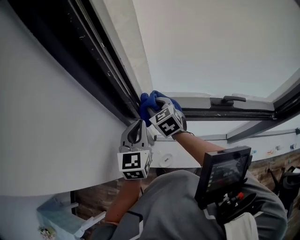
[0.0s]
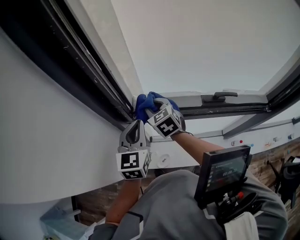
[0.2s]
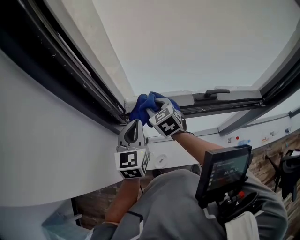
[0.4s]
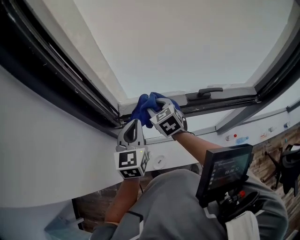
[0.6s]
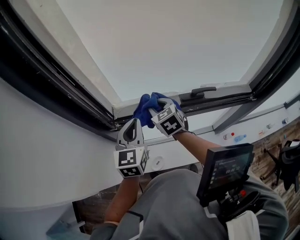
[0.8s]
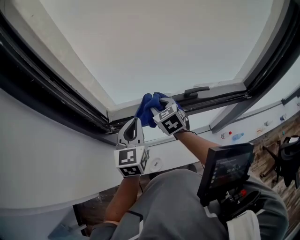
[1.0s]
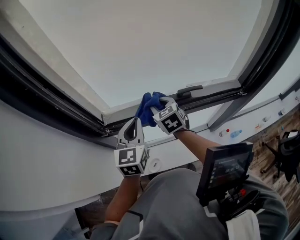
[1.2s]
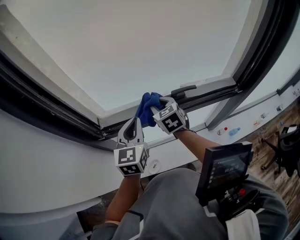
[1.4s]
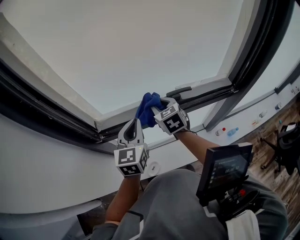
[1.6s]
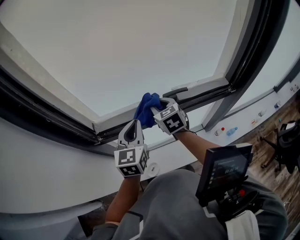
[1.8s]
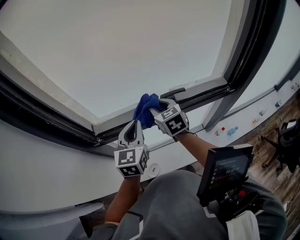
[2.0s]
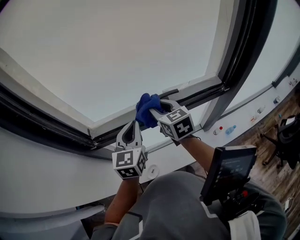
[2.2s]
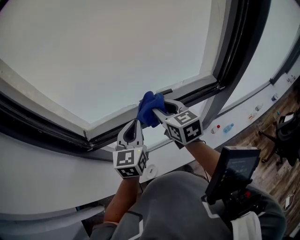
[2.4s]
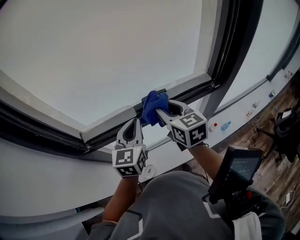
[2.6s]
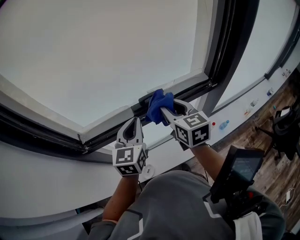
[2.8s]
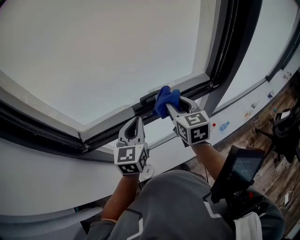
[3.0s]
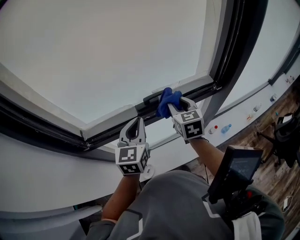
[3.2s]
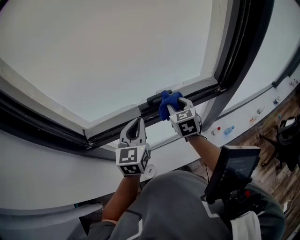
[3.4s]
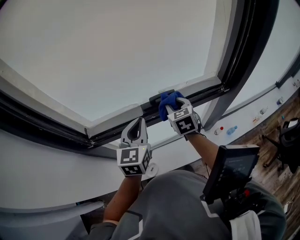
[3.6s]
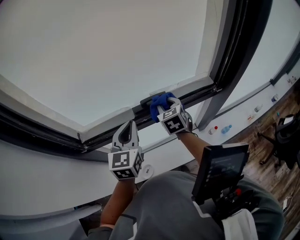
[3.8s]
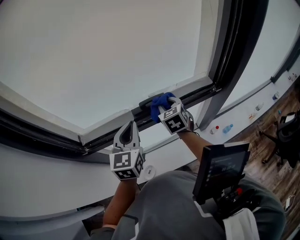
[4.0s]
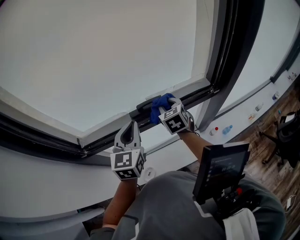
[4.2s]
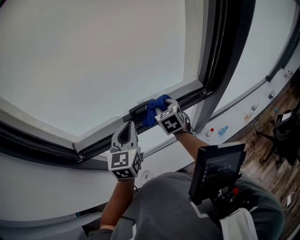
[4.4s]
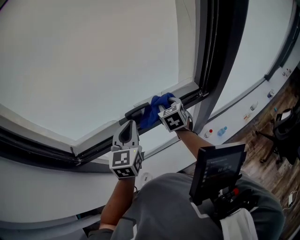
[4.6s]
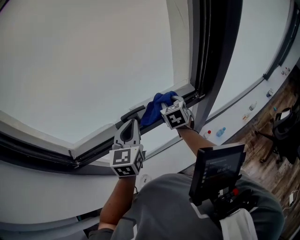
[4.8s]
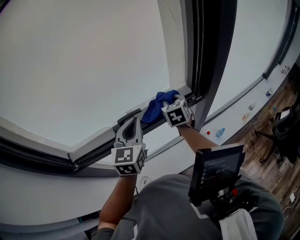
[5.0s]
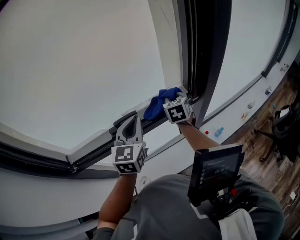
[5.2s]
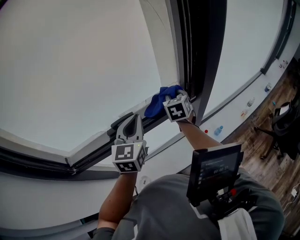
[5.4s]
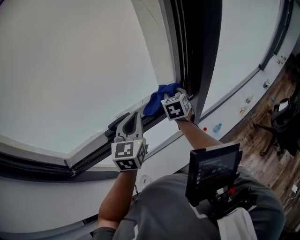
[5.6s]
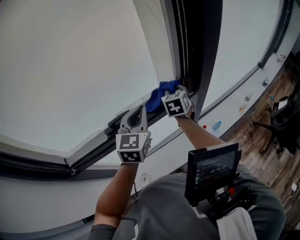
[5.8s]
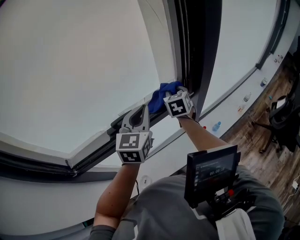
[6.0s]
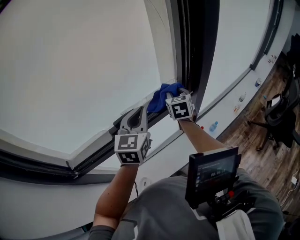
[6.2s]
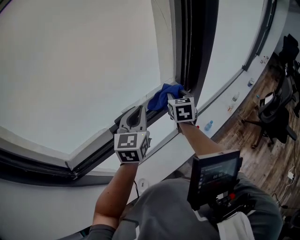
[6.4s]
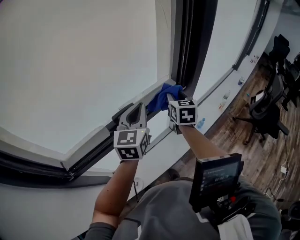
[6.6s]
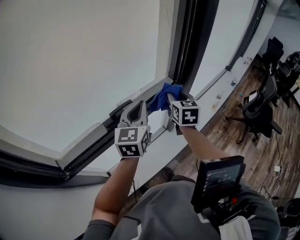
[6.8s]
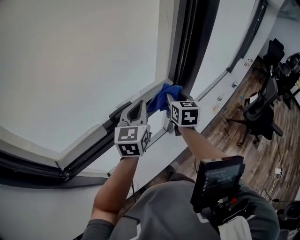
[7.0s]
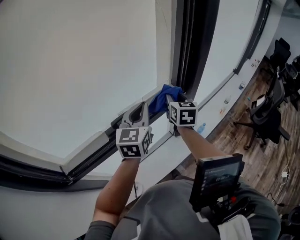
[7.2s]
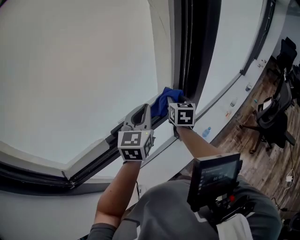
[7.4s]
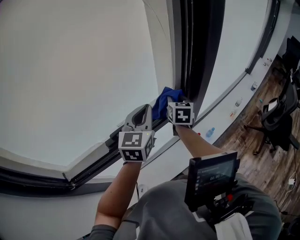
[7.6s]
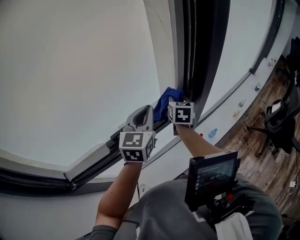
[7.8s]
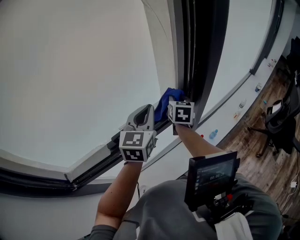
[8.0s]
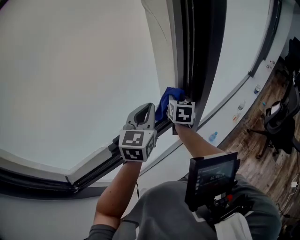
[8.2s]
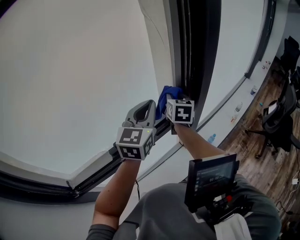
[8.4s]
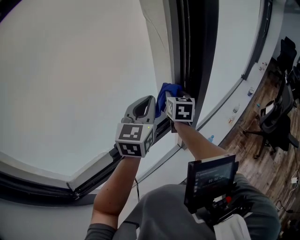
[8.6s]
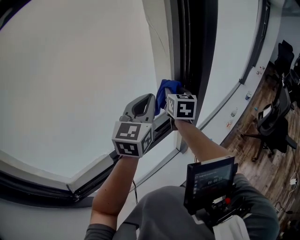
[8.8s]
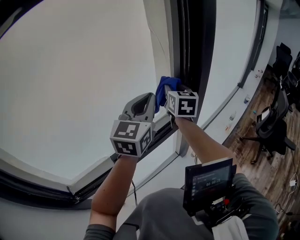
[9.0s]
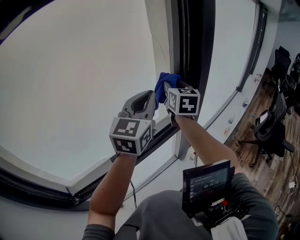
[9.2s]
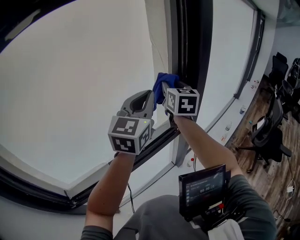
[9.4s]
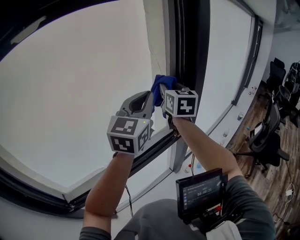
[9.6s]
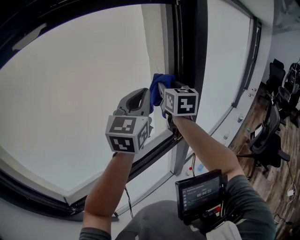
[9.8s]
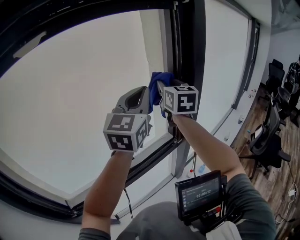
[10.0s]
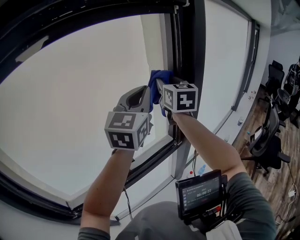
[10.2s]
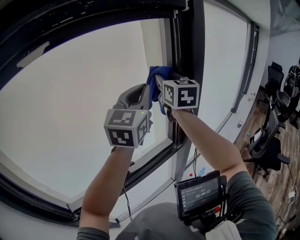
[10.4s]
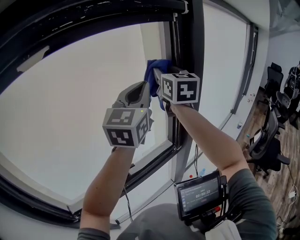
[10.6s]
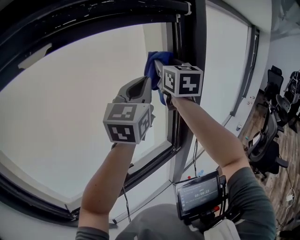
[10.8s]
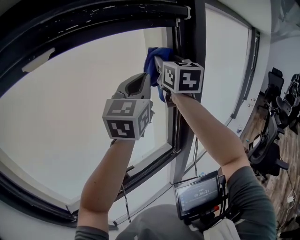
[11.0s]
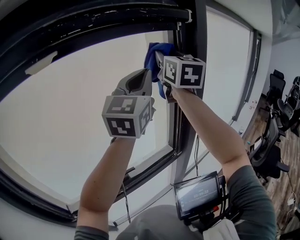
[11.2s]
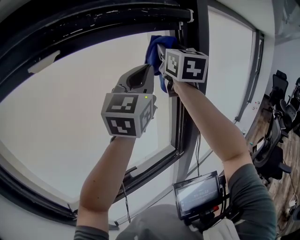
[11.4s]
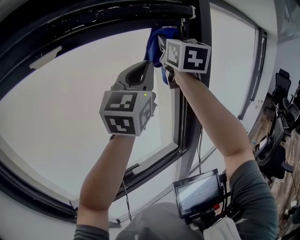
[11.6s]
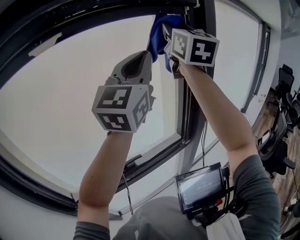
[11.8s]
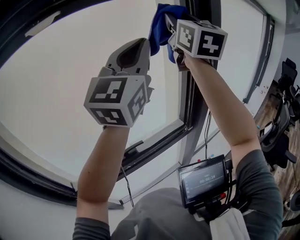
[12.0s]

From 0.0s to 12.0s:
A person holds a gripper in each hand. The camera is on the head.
From 0.0s to 1.6s: Both grippers travel together to the right, approximately 25 cm. The right gripper swivels about 20 degrees.
From 1.6s to 3.0s: The right gripper heads to the right, covering roughly 20 cm, and rotates approximately 20 degrees; the left gripper is displaced to the right by about 10 cm.
From 3.0s to 4.4s: The right gripper goes about 15 cm downward and forward.
From 4.4s to 6.0s: Both grippers move to the right and forward, some 20 cm. The right gripper turns by some 20 degrees.
From 6.0s to 7.6s: The right gripper reaches about 10 cm backward, then returns, and turns by some 20 degrees.
From 7.6s to 9.0s: The two grippers go some 15 cm upward.
From 9.0s to 10.4s: Both grippers travel together upward, some 20 cm.
From 10.4s to 12.0s: The left gripper moves upward and backward, some 10 cm, while the right gripper moves upward, approximately 15 cm.

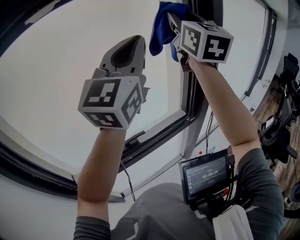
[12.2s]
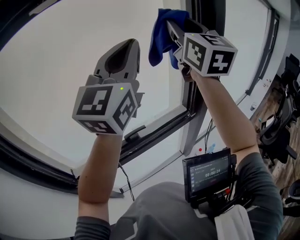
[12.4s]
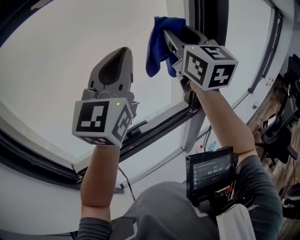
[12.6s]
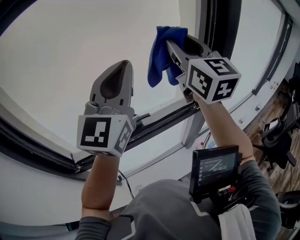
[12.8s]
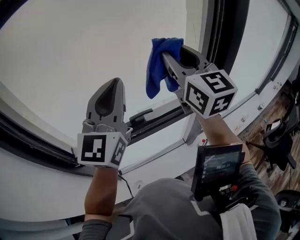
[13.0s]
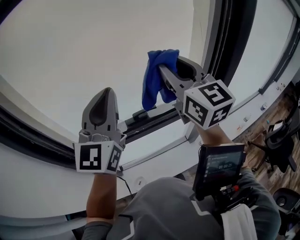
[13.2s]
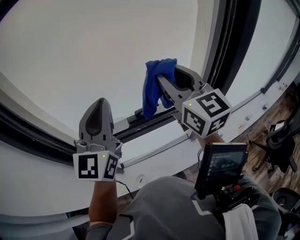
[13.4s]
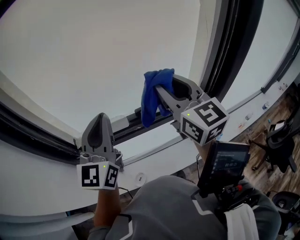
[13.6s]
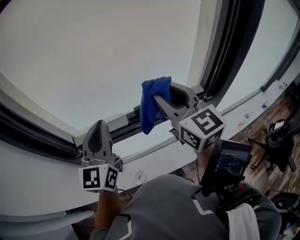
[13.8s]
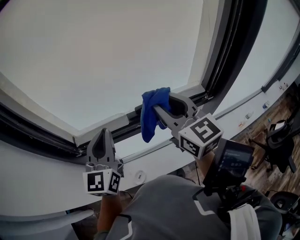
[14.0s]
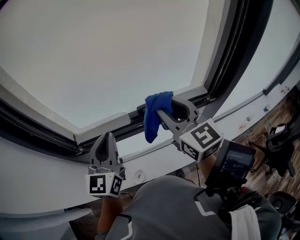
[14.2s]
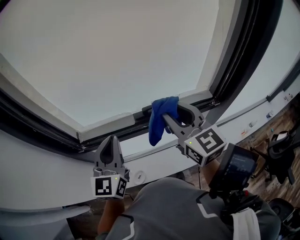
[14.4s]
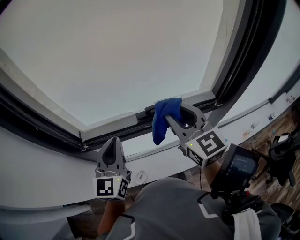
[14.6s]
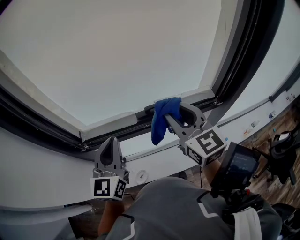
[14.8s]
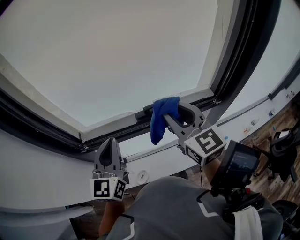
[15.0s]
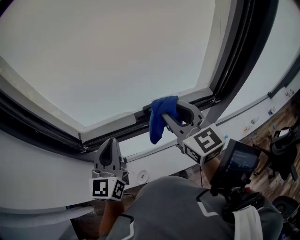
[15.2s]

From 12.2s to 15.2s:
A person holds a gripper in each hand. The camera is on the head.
From 12.2s to 13.8s: The grippers both shift downward by approximately 30 cm. The right gripper changes its angle by about 40 degrees. Meanwhile the left gripper swivels roughly 40 degrees.
From 13.8s to 15.2s: Both grippers move downward, about 5 cm.

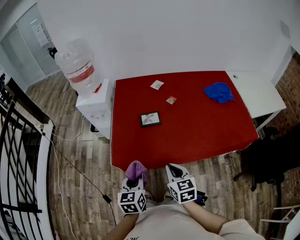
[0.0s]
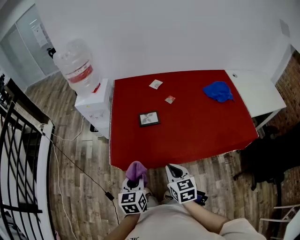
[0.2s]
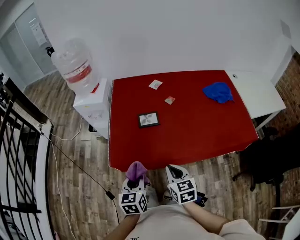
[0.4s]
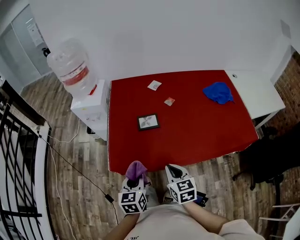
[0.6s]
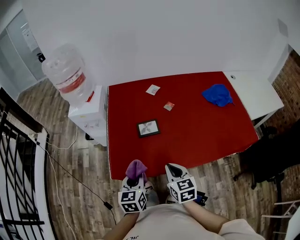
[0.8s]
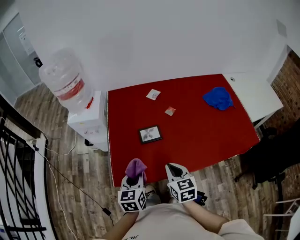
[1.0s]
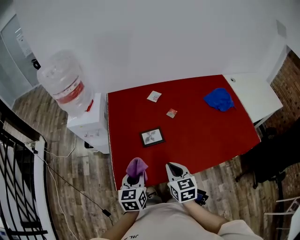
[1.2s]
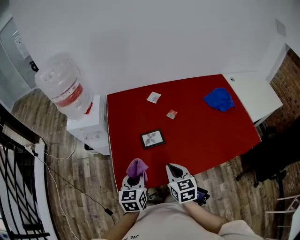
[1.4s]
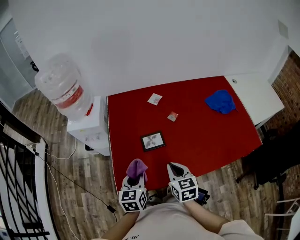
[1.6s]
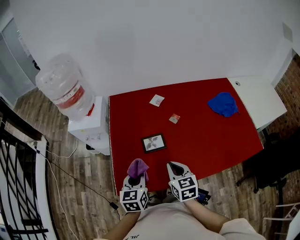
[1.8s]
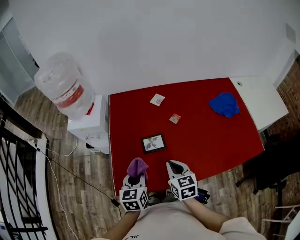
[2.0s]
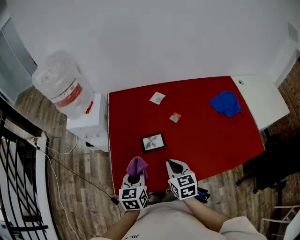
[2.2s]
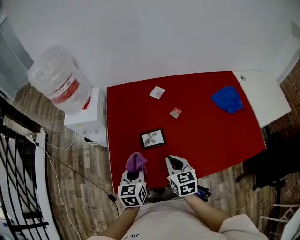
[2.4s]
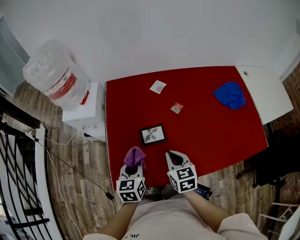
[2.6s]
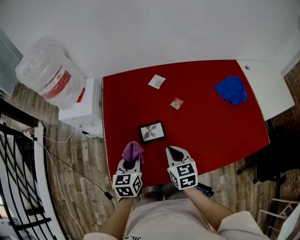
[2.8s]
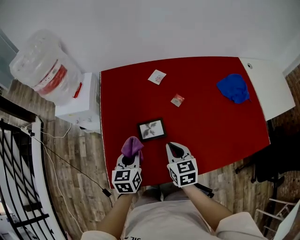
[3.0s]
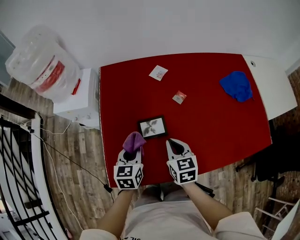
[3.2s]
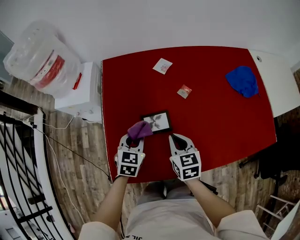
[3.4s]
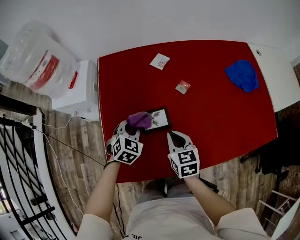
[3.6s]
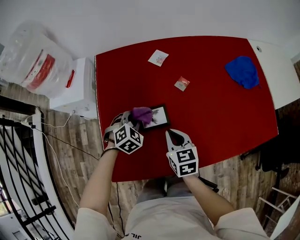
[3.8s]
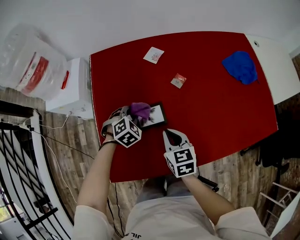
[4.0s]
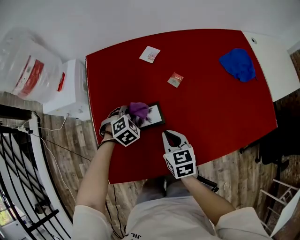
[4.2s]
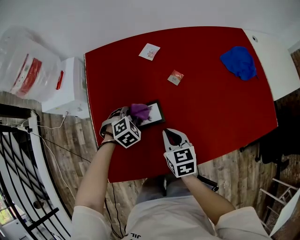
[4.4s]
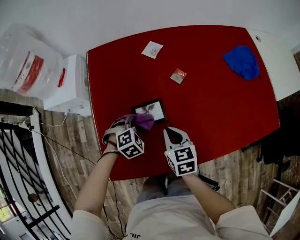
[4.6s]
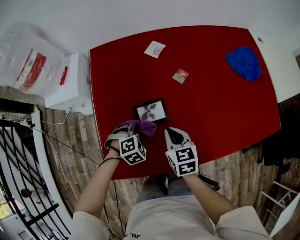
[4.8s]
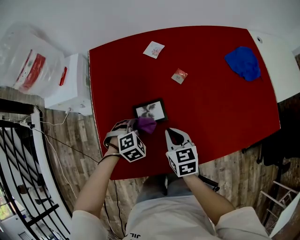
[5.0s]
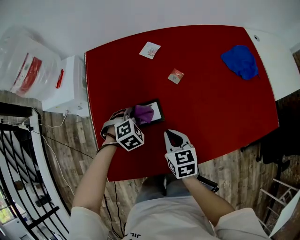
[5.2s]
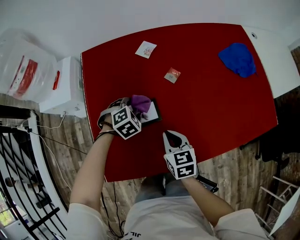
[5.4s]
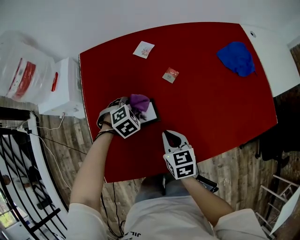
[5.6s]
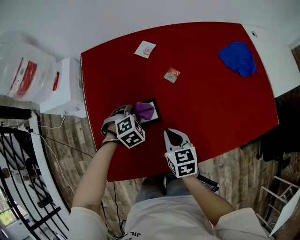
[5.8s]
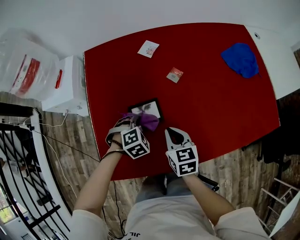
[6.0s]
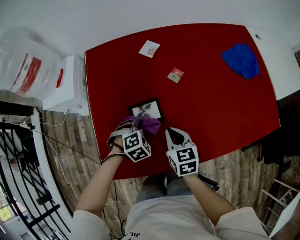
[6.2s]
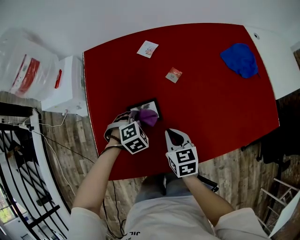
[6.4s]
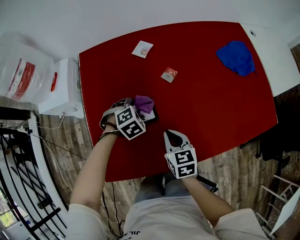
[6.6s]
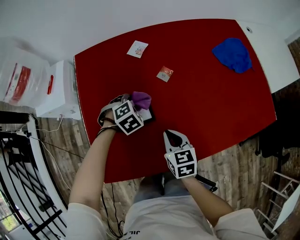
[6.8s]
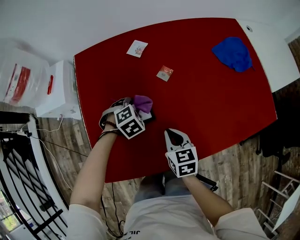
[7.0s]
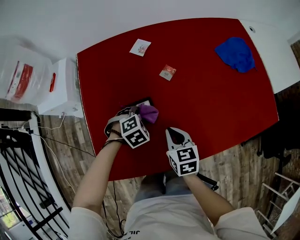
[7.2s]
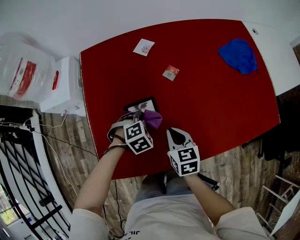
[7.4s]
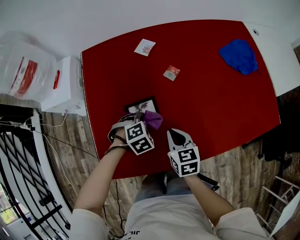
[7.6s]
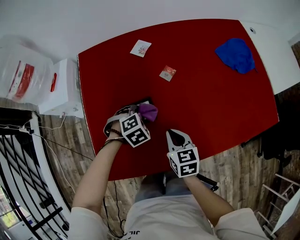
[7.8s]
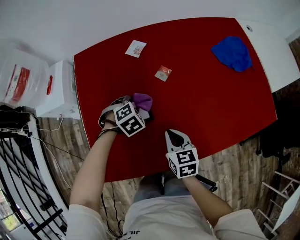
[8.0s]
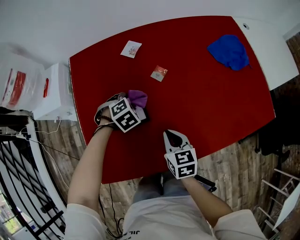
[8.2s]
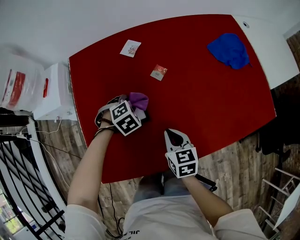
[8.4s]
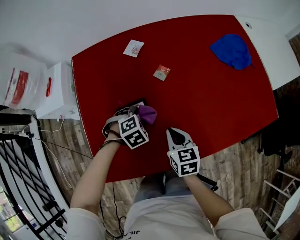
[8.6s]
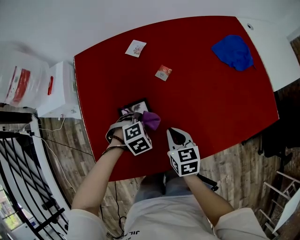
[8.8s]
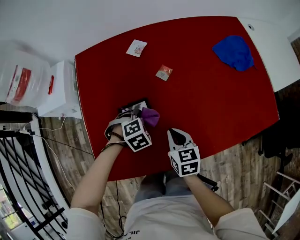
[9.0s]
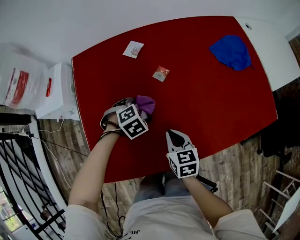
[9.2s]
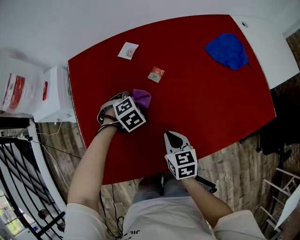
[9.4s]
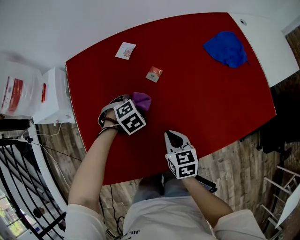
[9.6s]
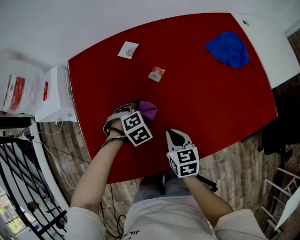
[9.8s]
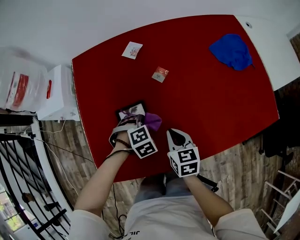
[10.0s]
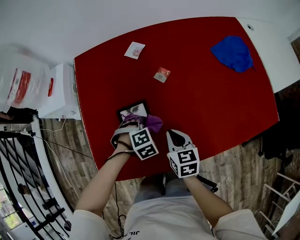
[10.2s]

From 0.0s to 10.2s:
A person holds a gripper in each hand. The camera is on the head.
From 0.0s to 1.4s: Both grippers travel together forward, approximately 20 cm.
From 1.4s to 3.0s: Both grippers travel together forward and downward, roughly 15 cm.
From 3.0s to 4.4s: The left gripper shifts approximately 20 cm downward and forward, and twists some 60 degrees clockwise, seen from behind. The right gripper travels downward by some 5 cm.
From 4.4s to 5.8s: The left gripper goes backward and returns, about 10 cm each way.
From 5.8s to 7.2s: The left gripper goes forward and backward, about 10 cm each way, reversing 2 times.
From 7.2s to 8.8s: The left gripper goes forward and returns, about 5 cm each way.
